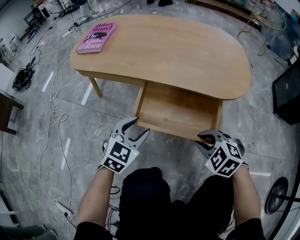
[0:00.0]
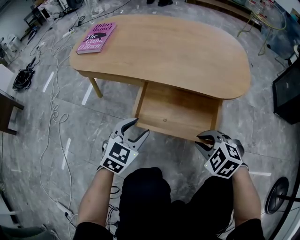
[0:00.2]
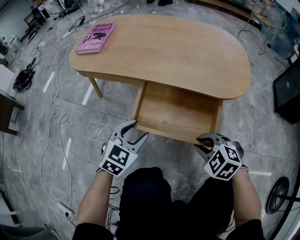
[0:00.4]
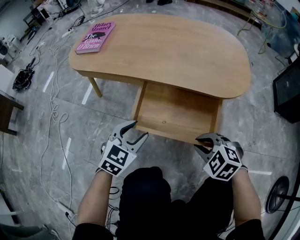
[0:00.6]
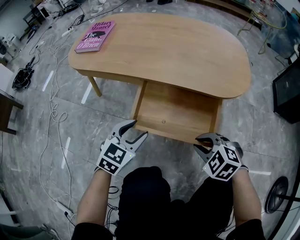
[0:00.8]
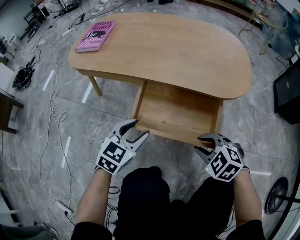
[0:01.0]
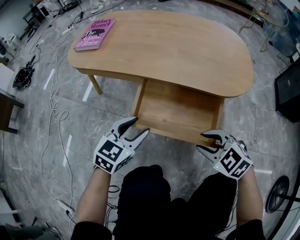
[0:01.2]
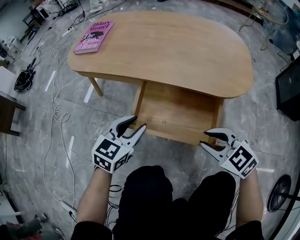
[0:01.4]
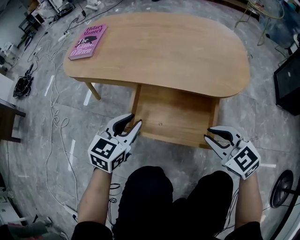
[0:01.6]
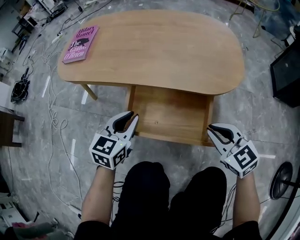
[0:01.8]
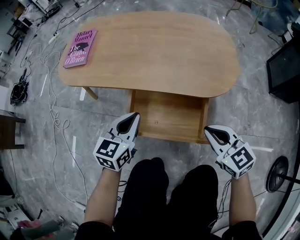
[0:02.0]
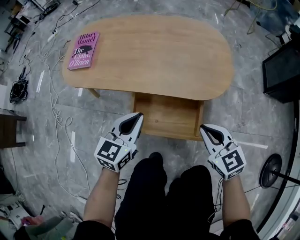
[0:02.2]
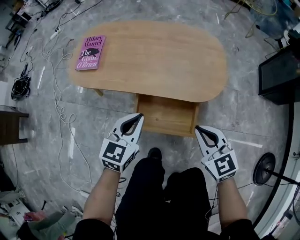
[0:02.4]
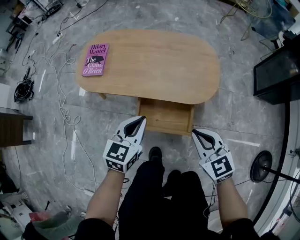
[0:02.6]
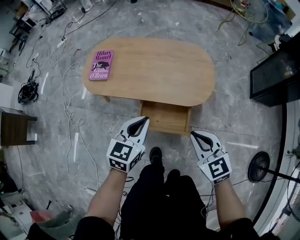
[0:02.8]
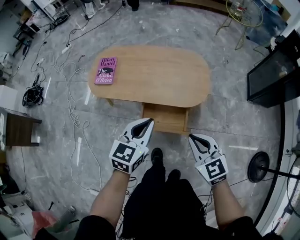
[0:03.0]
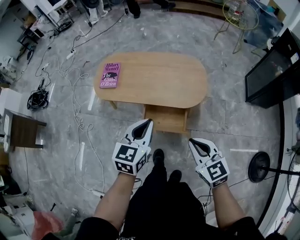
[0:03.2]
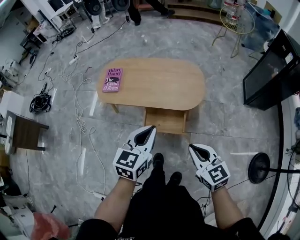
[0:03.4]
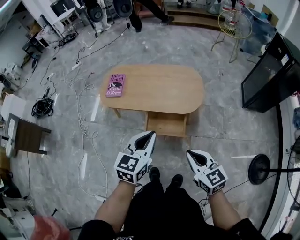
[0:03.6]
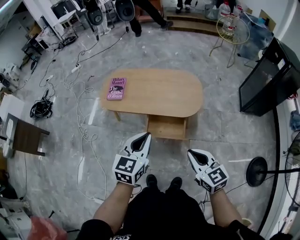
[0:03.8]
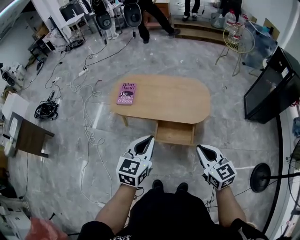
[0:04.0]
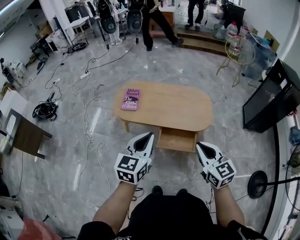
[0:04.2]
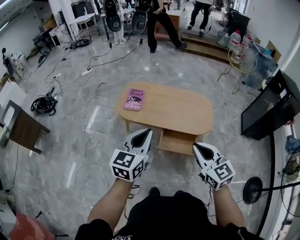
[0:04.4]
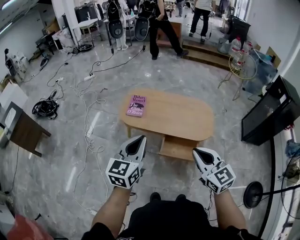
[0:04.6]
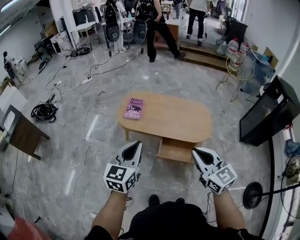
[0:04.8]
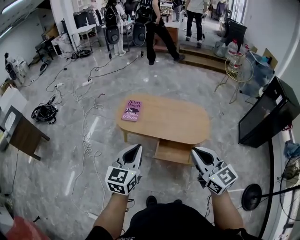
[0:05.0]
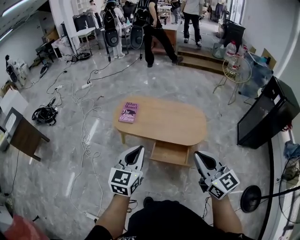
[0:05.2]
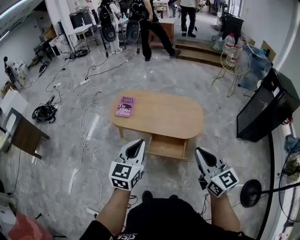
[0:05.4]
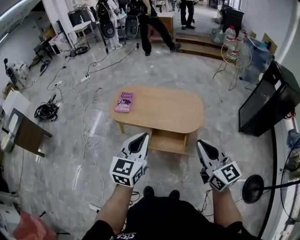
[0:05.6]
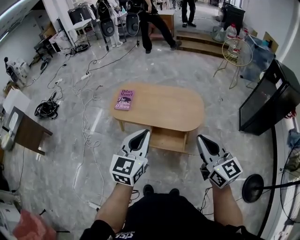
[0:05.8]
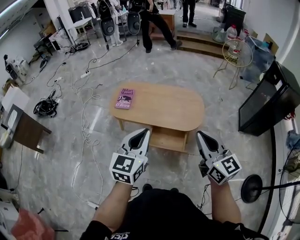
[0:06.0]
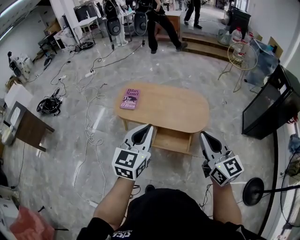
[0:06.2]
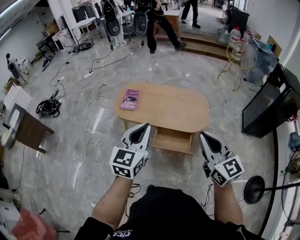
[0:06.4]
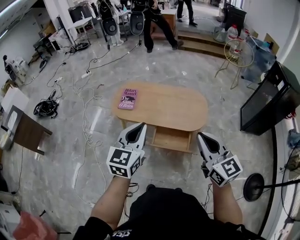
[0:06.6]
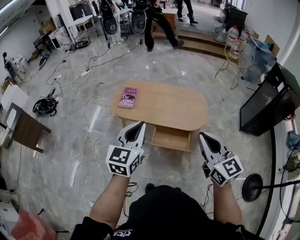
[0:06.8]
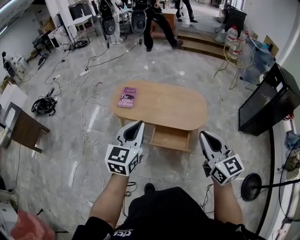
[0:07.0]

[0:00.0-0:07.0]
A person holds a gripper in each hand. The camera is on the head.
0:00.0 to 0:01.4: The right gripper rotates about 20 degrees.
0:01.4 to 0:02.8: The two grippers go about 35 cm upward. The left gripper closes its fingers. The right gripper turns by roughly 30 degrees, and closes.
0:02.8 to 0:04.2: The right gripper goes some 25 cm upward and backward. The left gripper shifts some 30 cm upward, backward and to the left.
0:04.2 to 0:05.6: The right gripper shifts some 15 cm to the right and upward; the left gripper heads to the right, covering some 10 cm.
0:05.6 to 0:07.0: The two grippers go some 5 cm to the left.

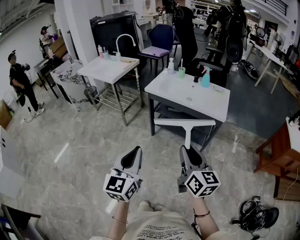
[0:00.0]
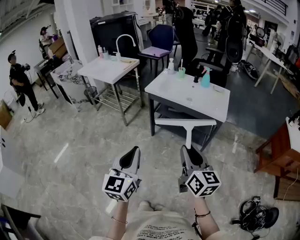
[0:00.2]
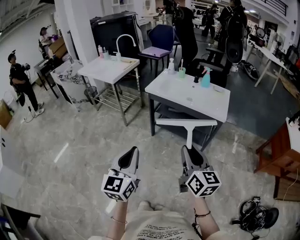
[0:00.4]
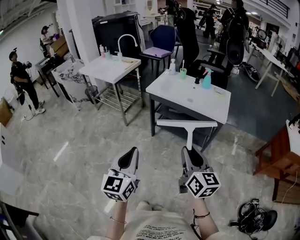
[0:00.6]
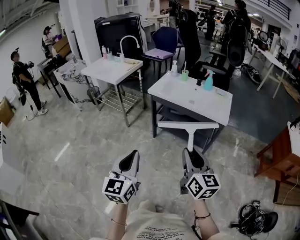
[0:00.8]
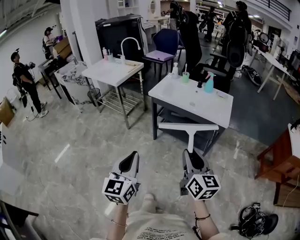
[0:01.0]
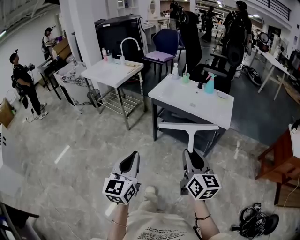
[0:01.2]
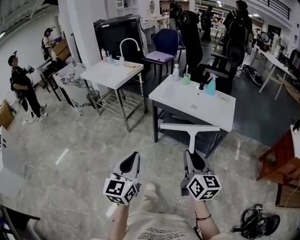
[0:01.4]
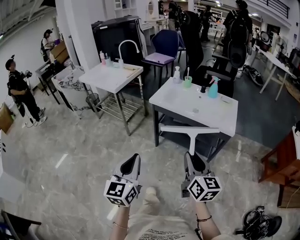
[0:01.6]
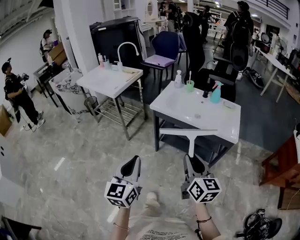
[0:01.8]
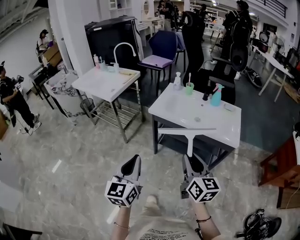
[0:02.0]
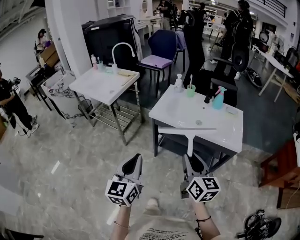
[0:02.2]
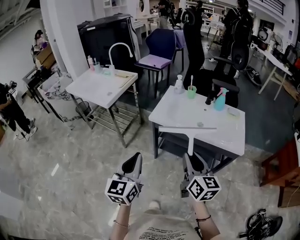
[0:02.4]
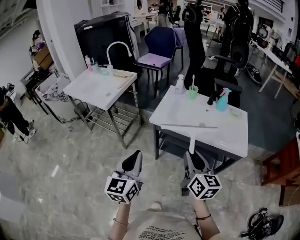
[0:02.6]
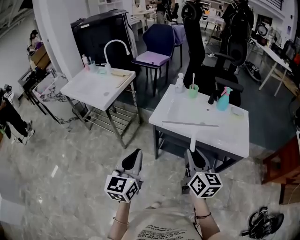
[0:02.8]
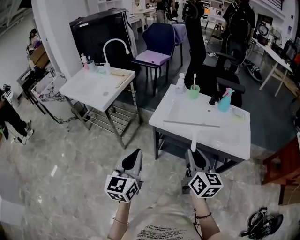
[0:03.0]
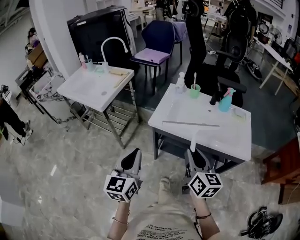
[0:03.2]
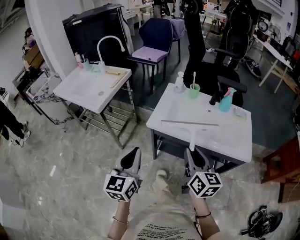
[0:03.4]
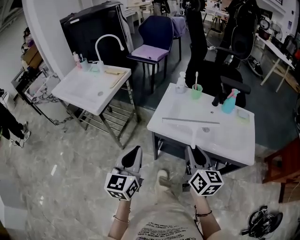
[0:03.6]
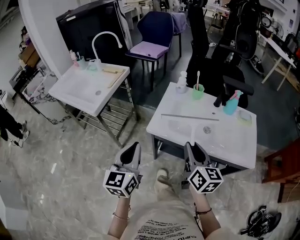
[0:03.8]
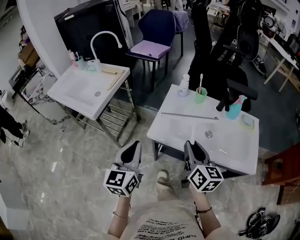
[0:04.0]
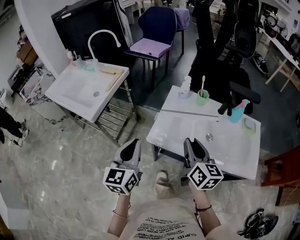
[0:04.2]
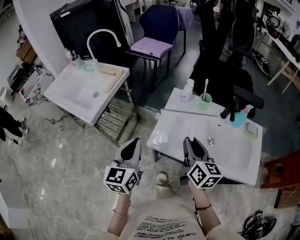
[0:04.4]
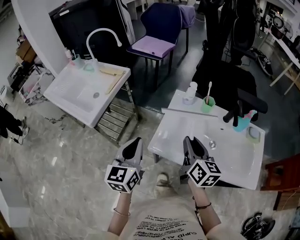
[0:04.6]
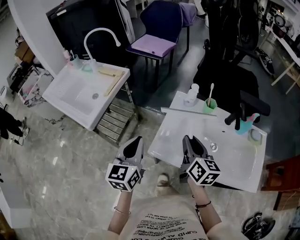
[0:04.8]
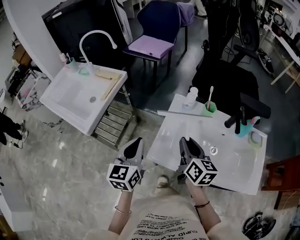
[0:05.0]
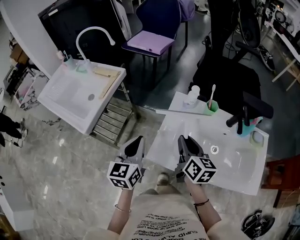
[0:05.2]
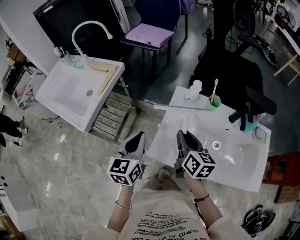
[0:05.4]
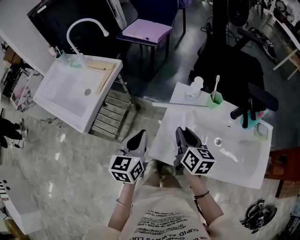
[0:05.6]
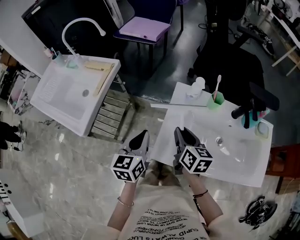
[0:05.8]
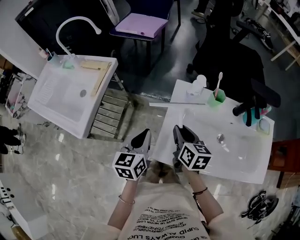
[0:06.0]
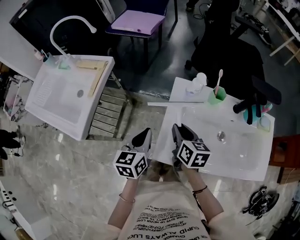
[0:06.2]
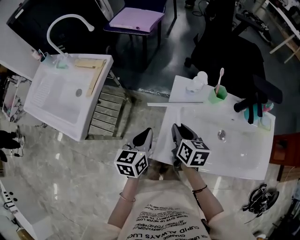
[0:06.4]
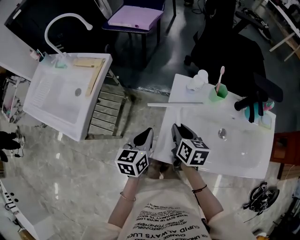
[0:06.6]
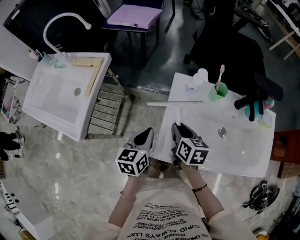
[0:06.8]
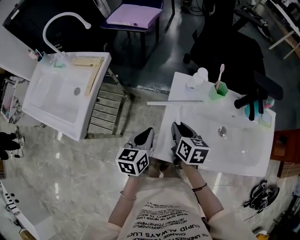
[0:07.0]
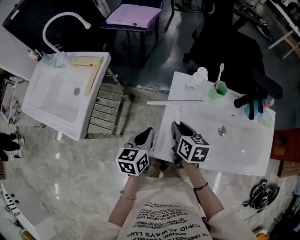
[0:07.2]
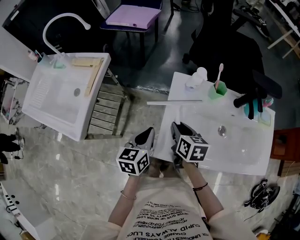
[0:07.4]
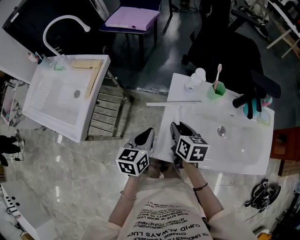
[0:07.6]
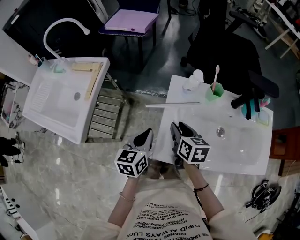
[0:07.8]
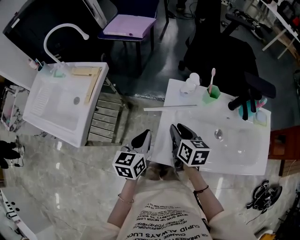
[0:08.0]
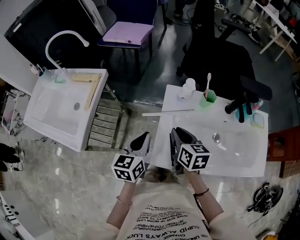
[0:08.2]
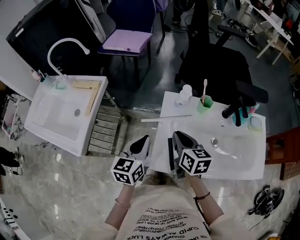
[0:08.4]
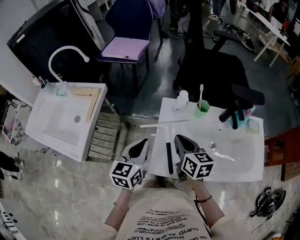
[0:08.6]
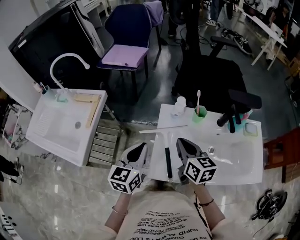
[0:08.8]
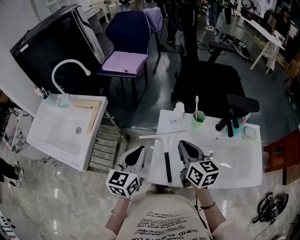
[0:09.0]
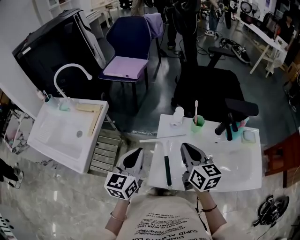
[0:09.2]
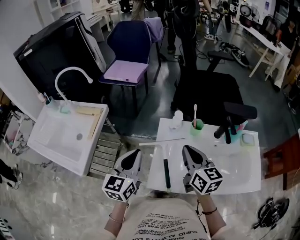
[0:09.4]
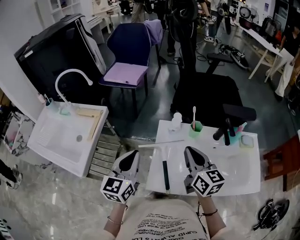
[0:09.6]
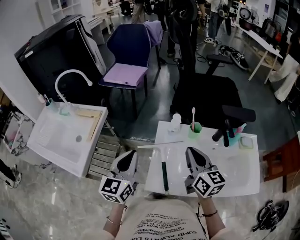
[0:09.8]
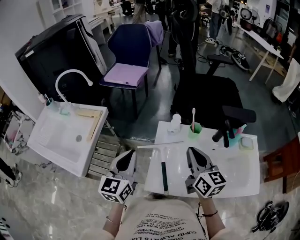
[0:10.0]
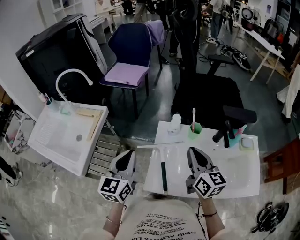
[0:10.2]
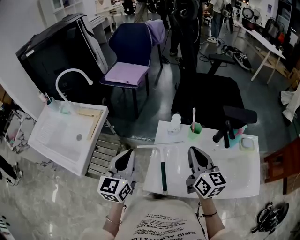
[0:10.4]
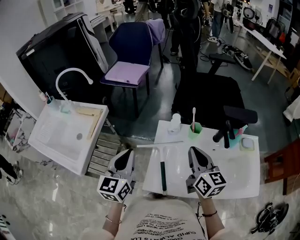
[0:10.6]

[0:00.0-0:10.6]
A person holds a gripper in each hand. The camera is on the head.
0:00.0 to 0:01.6: Both grippers travel together forward, about 10 cm.
0:01.6 to 0:03.0: The grippers both shift forward by some 25 cm.
0:03.0 to 0:04.6: The grippers both shift forward by approximately 25 cm.
0:04.6 to 0:06.0: The right gripper is displaced forward, downward and to the left by about 15 cm. The left gripper travels forward and downward by about 15 cm.
0:06.0 to 0:07.6: There are only small adjustments of the grippers.
0:07.6 to 0:09.0: The right gripper travels upward and to the right by approximately 15 cm, rotates some 20 degrees, and closes; the left gripper travels upward by about 10 cm, and turns by about 20 degrees.
0:09.0 to 0:10.6: The right gripper travels to the right by roughly 5 cm.

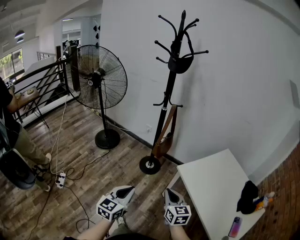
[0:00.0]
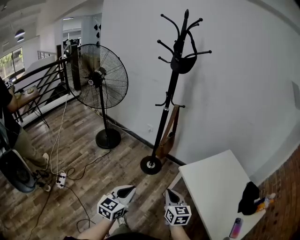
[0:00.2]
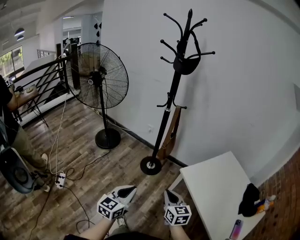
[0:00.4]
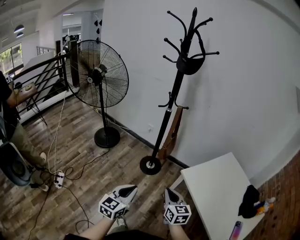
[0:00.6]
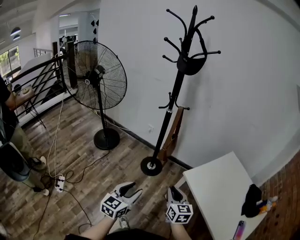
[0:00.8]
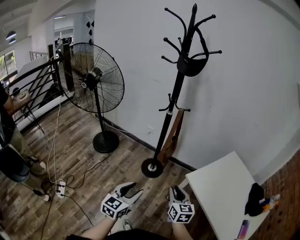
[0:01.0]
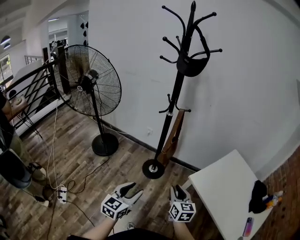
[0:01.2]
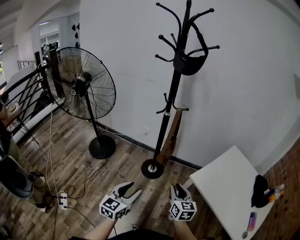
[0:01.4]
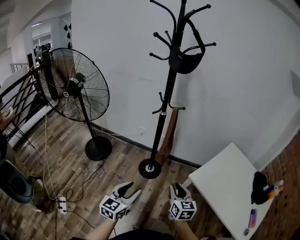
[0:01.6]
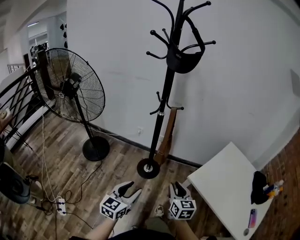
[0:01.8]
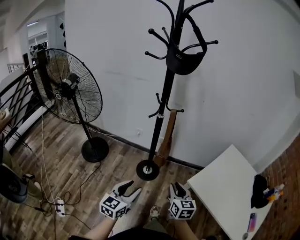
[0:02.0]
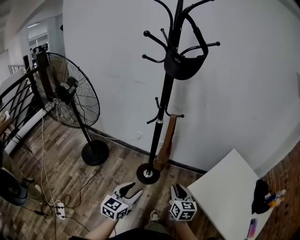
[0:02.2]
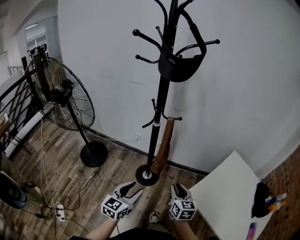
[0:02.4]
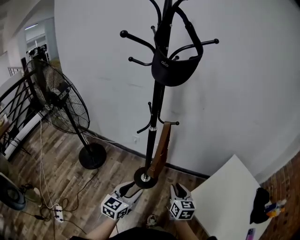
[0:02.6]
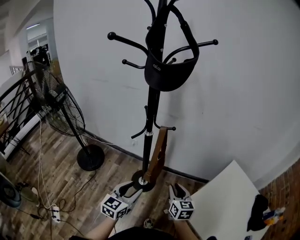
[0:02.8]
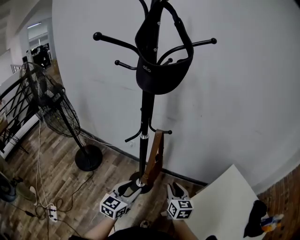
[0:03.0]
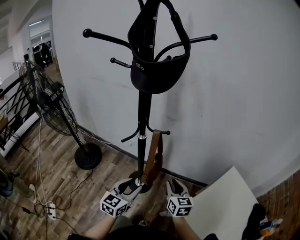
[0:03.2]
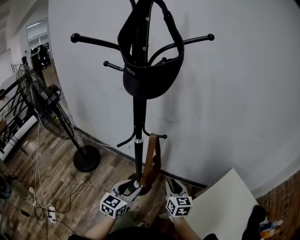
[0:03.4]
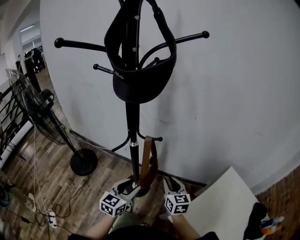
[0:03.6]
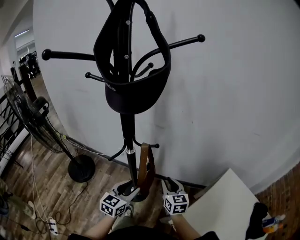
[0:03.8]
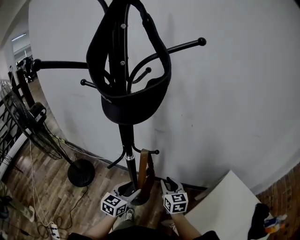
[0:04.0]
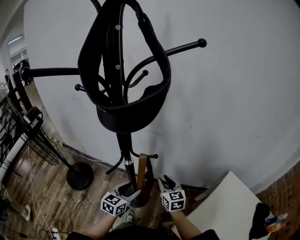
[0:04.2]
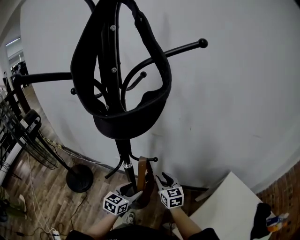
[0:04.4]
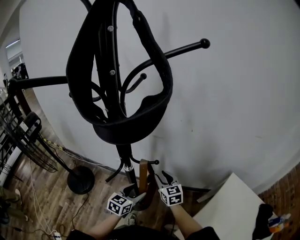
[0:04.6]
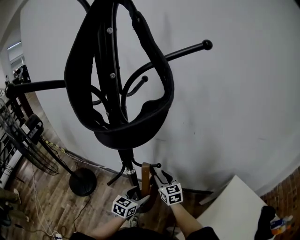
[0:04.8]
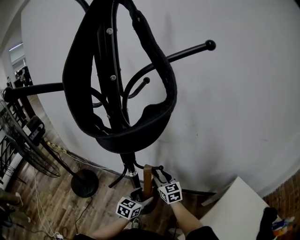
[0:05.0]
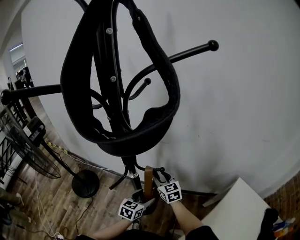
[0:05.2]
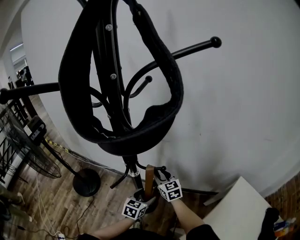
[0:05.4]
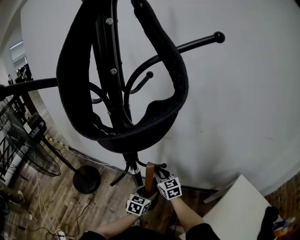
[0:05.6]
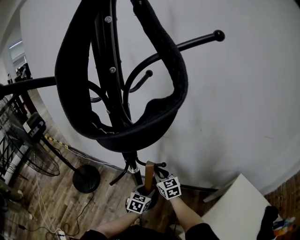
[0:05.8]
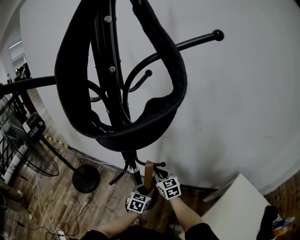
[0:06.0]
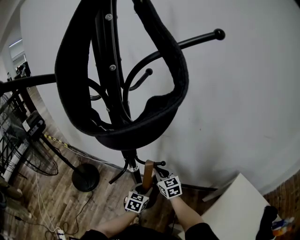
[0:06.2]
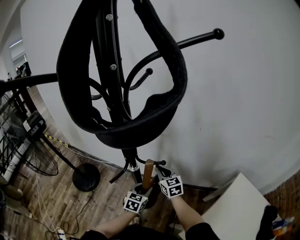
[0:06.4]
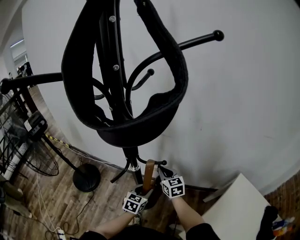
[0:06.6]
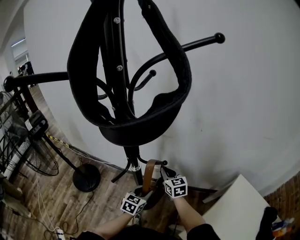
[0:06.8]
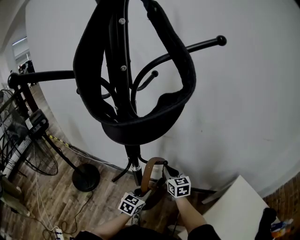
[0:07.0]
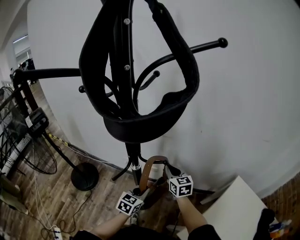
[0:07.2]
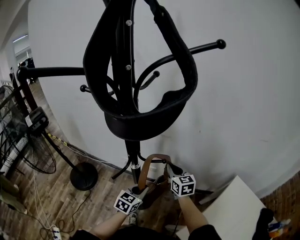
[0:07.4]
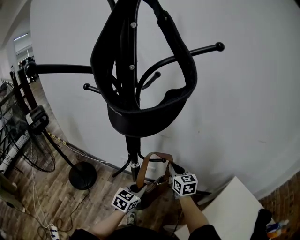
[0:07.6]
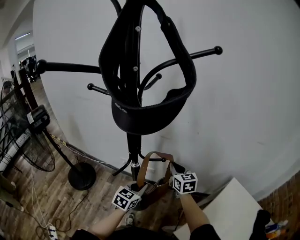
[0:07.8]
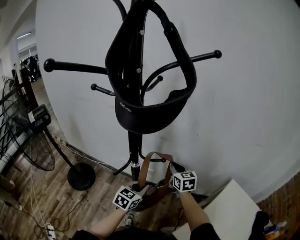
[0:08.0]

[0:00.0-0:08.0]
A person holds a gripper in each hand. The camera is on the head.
0:00.0 to 0:01.6: Both grippers travel together forward and to the left, about 20 cm. The left gripper opens its fingers; the right gripper opens up.
0:01.6 to 0:03.2: Both grippers move forward, roughly 30 cm.
0:03.2 to 0:04.8: Both grippers move forward, approximately 20 cm. The left gripper opens its fingers.
0:04.8 to 0:06.4: The left gripper shifts by approximately 5 cm, and closes. The right gripper closes.
0:06.4 to 0:08.0: The left gripper is displaced upward by approximately 10 cm, and closes up. The right gripper goes about 10 cm upward and to the right.
